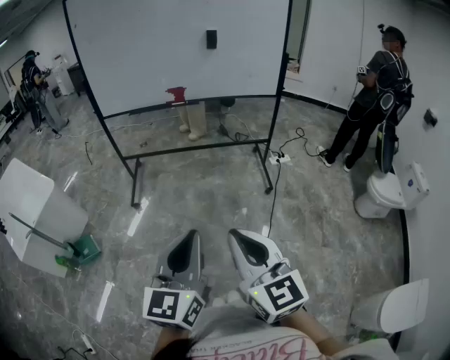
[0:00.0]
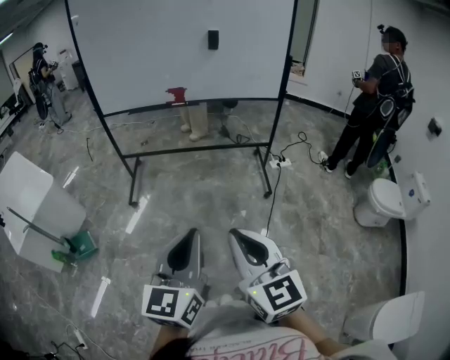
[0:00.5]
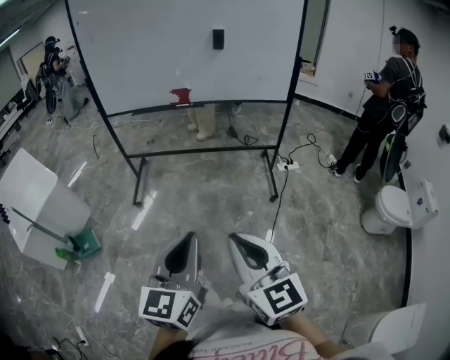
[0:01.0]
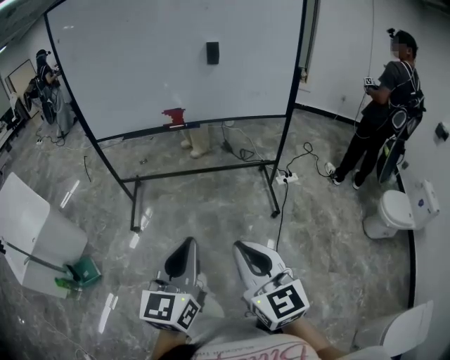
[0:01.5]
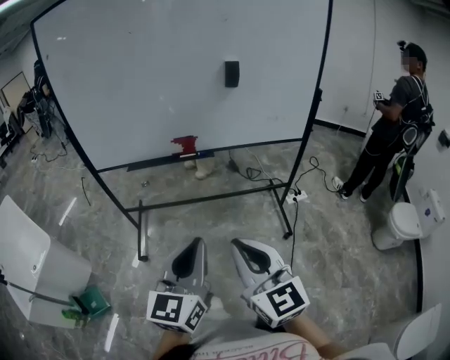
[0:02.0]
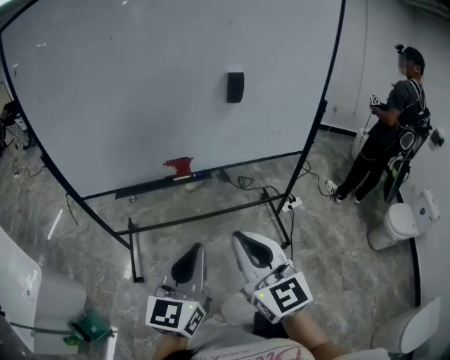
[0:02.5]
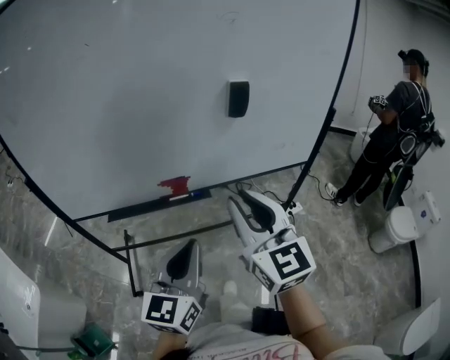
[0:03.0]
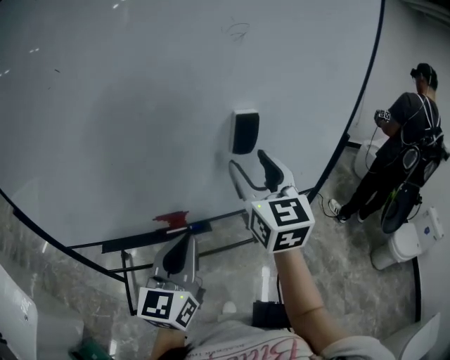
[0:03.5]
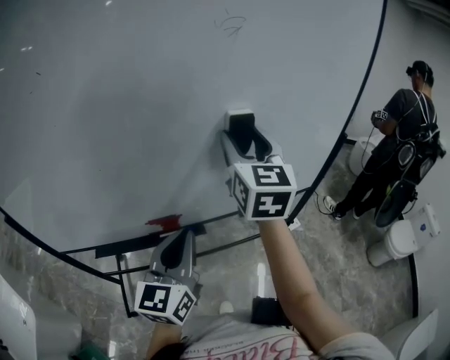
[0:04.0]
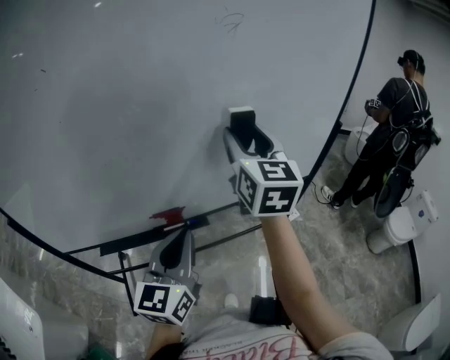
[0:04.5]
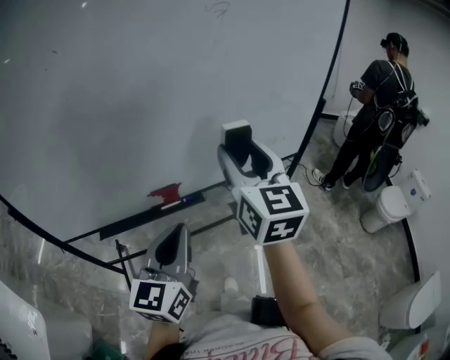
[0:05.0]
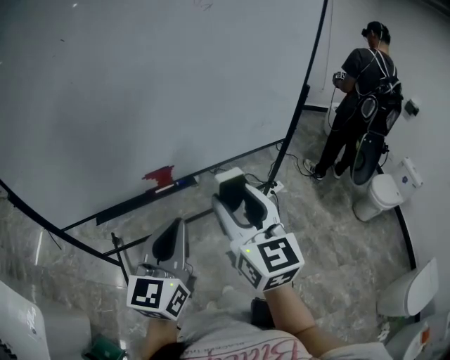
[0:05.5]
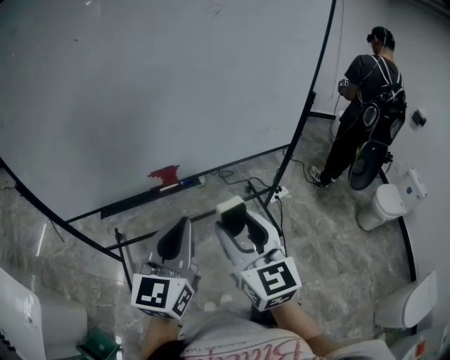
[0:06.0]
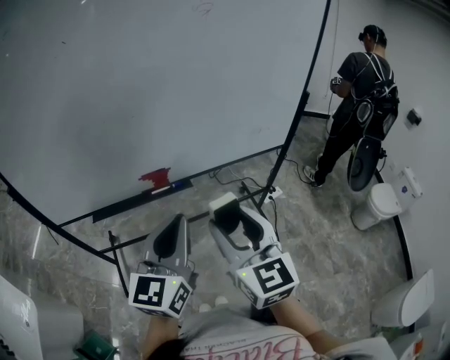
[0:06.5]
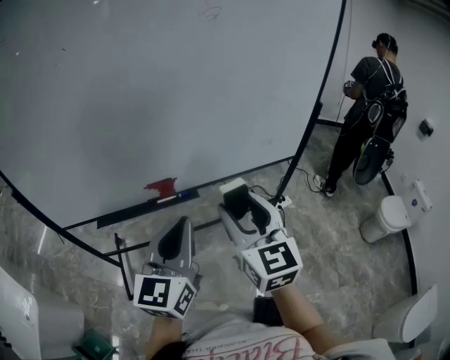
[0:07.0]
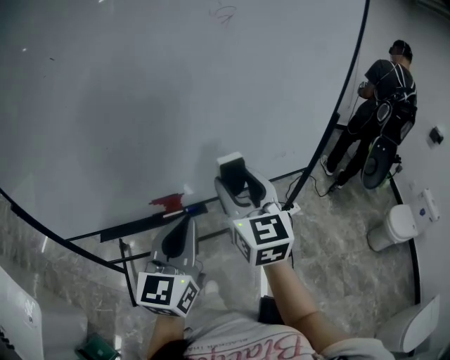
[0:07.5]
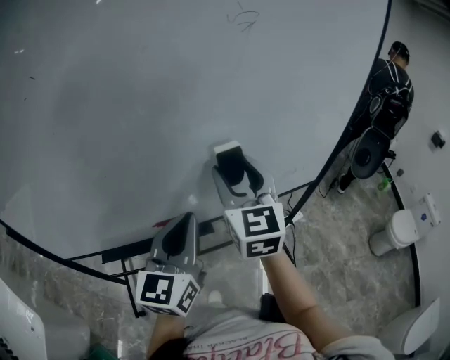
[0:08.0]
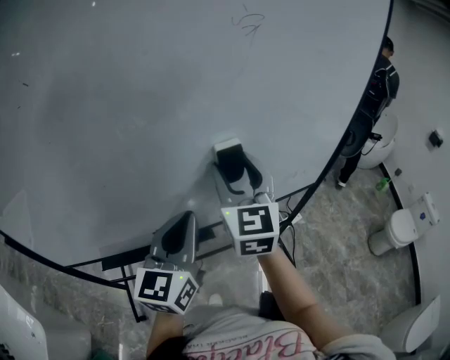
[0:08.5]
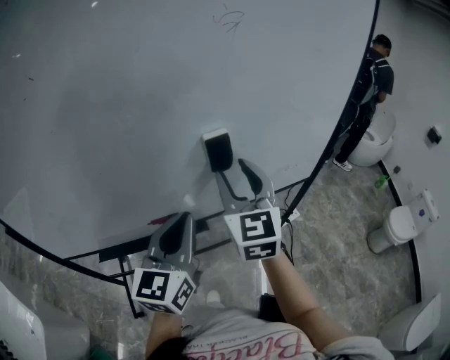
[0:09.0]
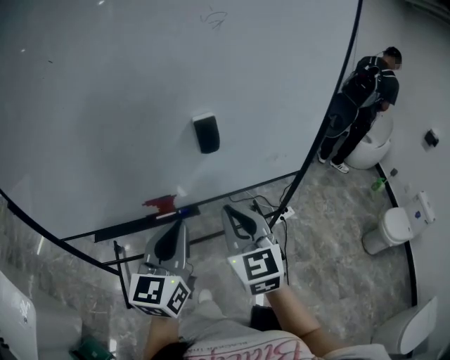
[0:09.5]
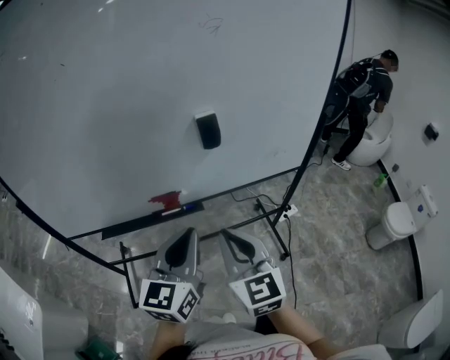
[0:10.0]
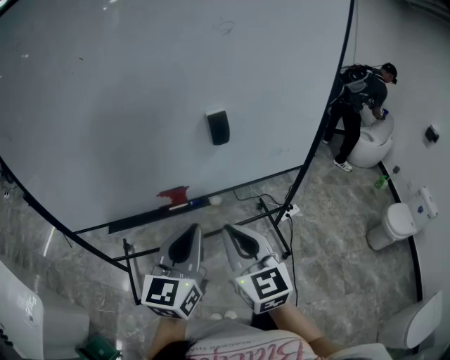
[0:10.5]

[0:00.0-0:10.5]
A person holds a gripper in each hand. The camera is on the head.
0:00.0 to 0:02.0: The grippers both shift forward by about 30 cm.
0:02.0 to 0:04.0: The two grippers go approximately 40 cm forward. The right gripper swivels about 30 degrees, and opens its fingers.
0:04.0 to 0:06.5: The right gripper travels backward by roughly 30 cm. The left gripper heads backward, covering approximately 15 cm.
0:06.5 to 0:08.5: The left gripper is displaced forward by about 20 cm; the right gripper moves forward, some 30 cm.
0:08.5 to 0:10.5: The left gripper heads backward, covering approximately 15 cm; the right gripper is displaced backward by about 25 cm, and closes its fingers.

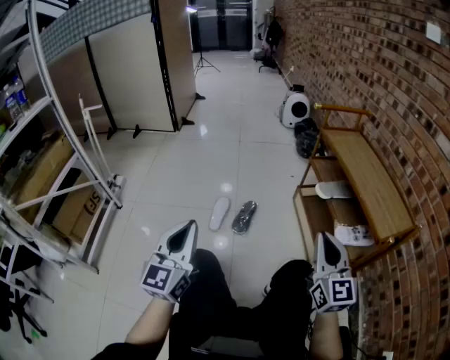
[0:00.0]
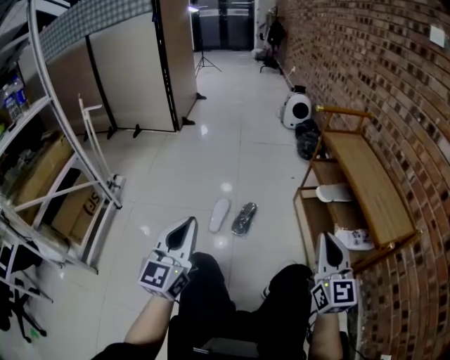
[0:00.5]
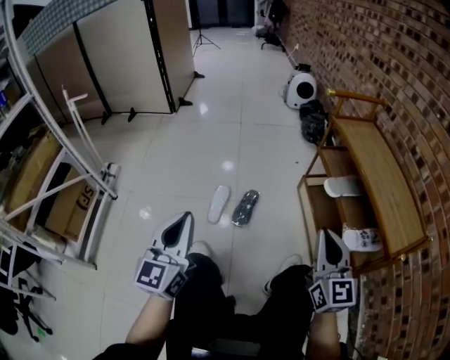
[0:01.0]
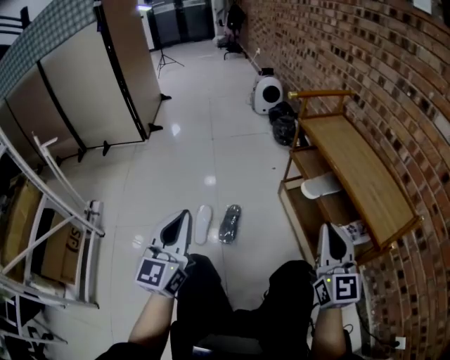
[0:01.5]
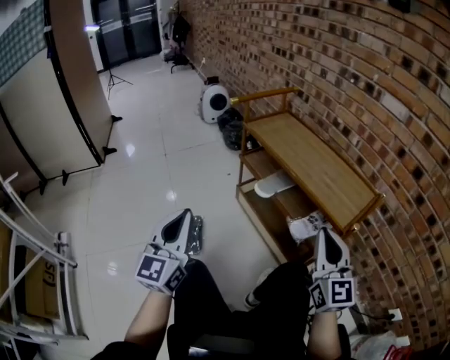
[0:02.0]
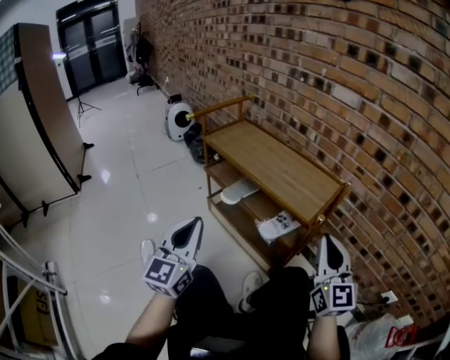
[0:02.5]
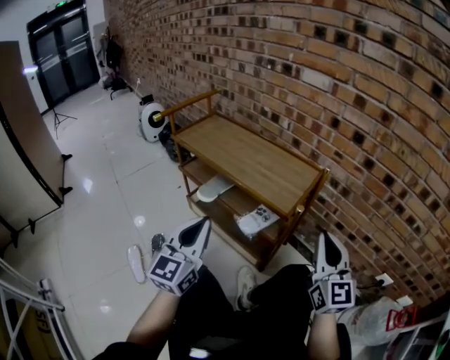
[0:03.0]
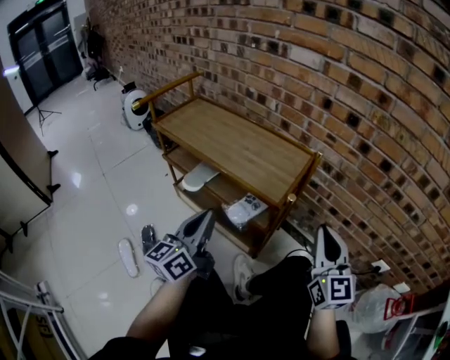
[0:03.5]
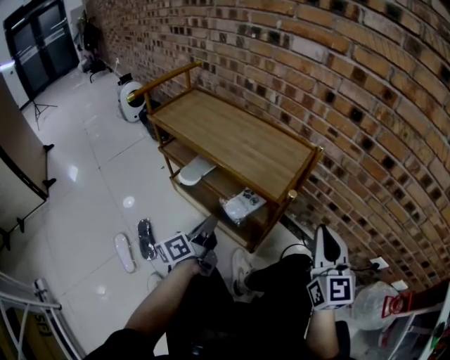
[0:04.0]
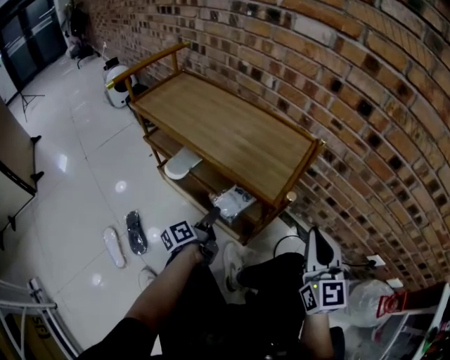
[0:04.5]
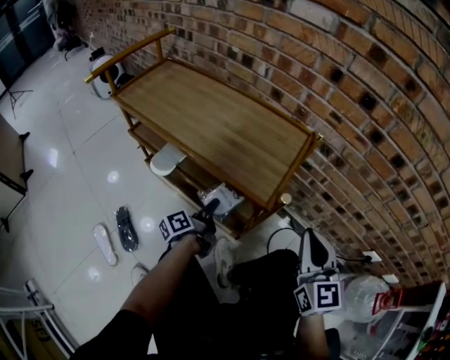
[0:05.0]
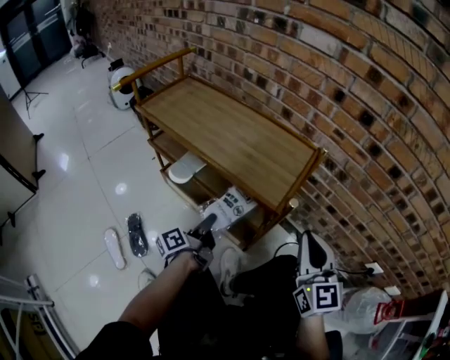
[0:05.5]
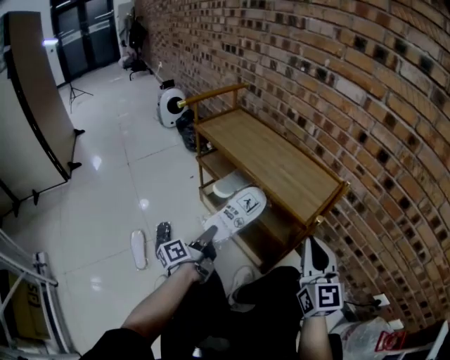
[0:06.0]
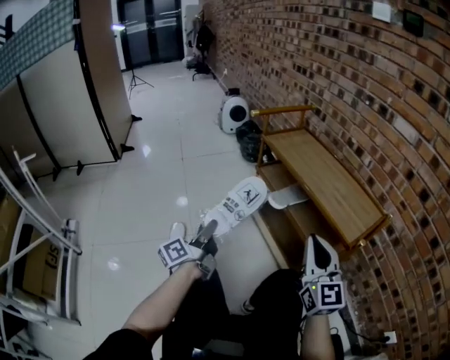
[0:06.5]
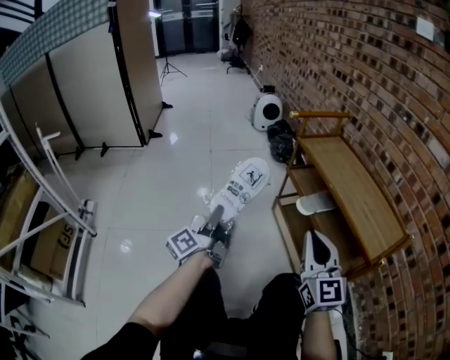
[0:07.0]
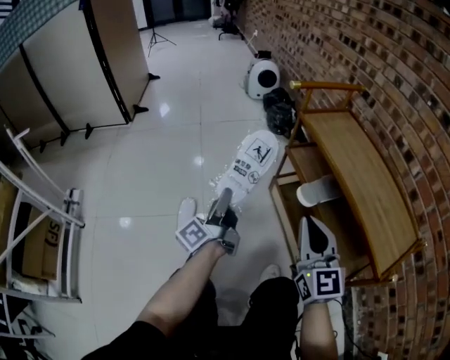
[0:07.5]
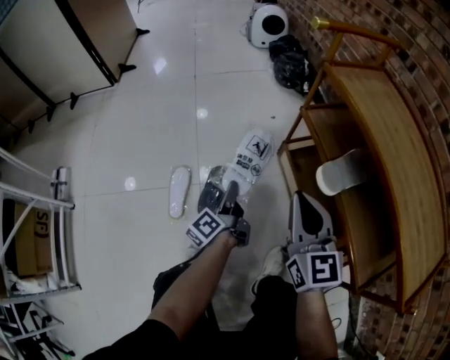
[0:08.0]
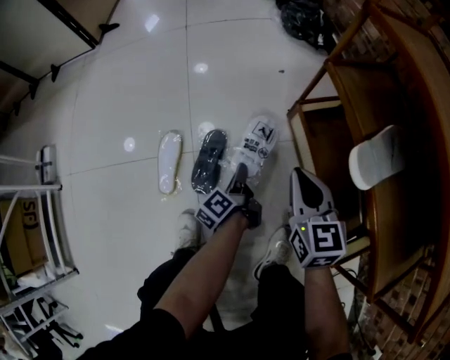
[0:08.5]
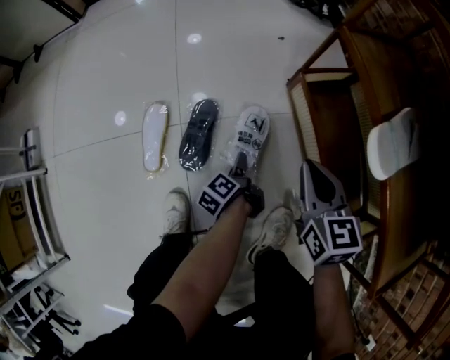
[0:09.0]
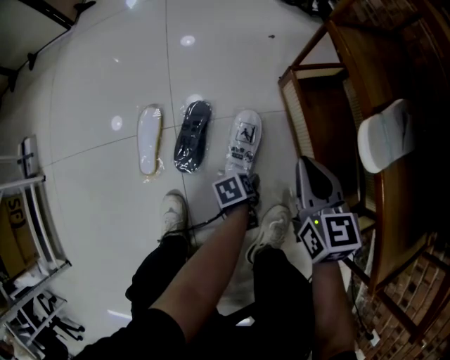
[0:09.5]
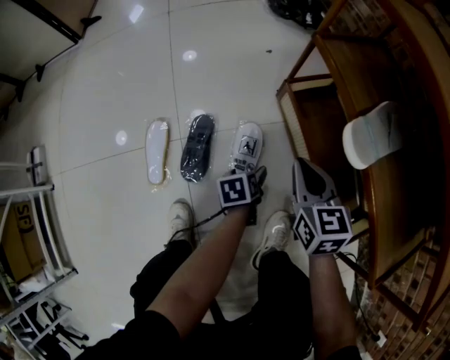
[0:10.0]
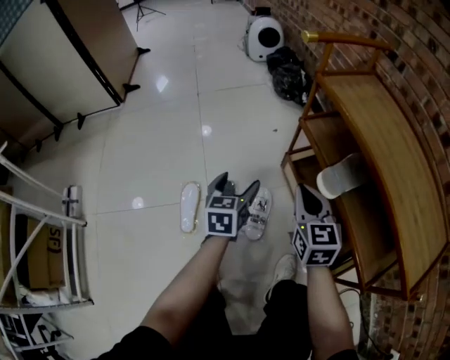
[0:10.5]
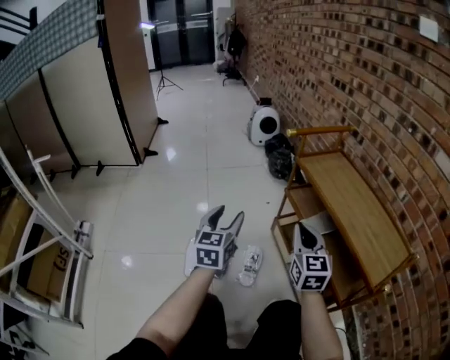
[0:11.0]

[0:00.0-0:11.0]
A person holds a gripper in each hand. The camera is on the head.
0:00.0 to 0:02.0: The right gripper moves some 10 cm, and changes its angle by some 30 degrees. Meanwhile the left gripper ends up about 25 cm from where it was, and swivels some 20 degrees.
0:02.0 to 0:03.5: The right gripper changes place by about 20 cm, and changes its angle by some 20 degrees. Meanwhile the left gripper shifts by approximately 30 cm, and rotates about 50 degrees.
0:03.5 to 0:05.5: The right gripper ends up approximately 5 cm from where it was. Meanwhile the left gripper goes approximately 20 cm downward, and twists approximately 50 degrees counterclockwise, seen from behind.
0:05.5 to 0:07.5: The left gripper shifts by roughly 35 cm, and changes its angle by approximately 50 degrees. Meanwhile the right gripper ends up about 35 cm from where it was, and changes its angle by roughly 40 degrees.
0:07.5 to 0:09.0: The left gripper is displaced downward by about 50 cm, and tilts its fingers some 50 degrees downward. The right gripper is displaced downward and forward by about 35 cm, and angles its fingers downward, by some 30 degrees.
0:09.0 to 0:11.0: The left gripper goes approximately 50 cm upward, and rotates around the line of its fingers by some 80 degrees, clockwise from behind. Meanwhile the right gripper travels upward by approximately 30 cm, and changes its angle by about 30 degrees.

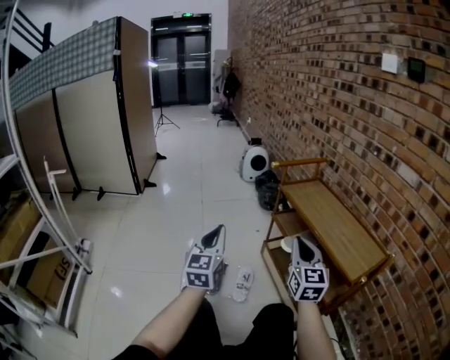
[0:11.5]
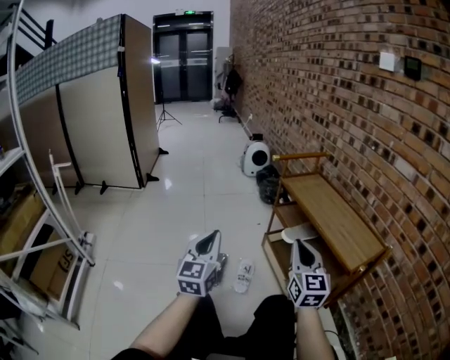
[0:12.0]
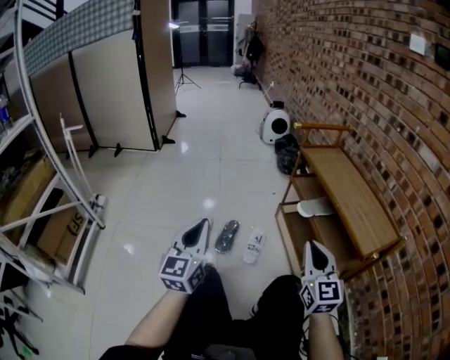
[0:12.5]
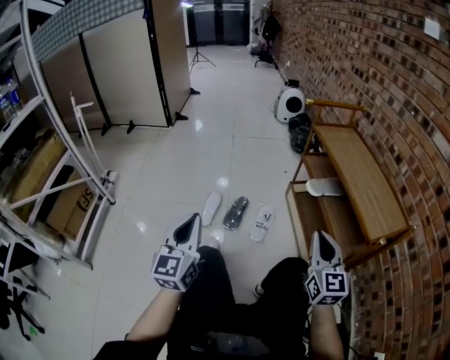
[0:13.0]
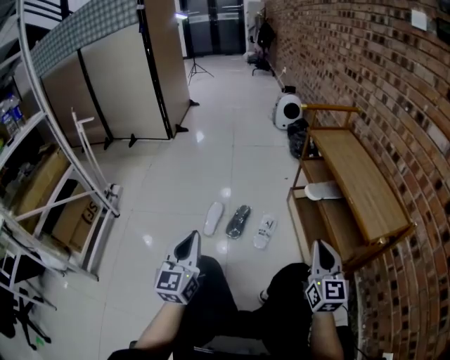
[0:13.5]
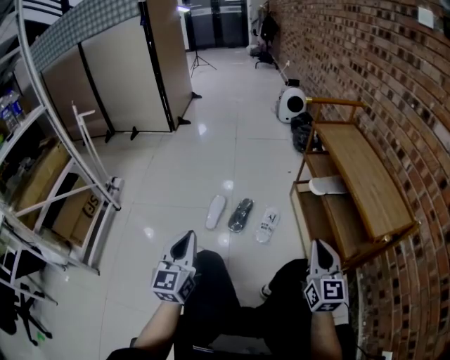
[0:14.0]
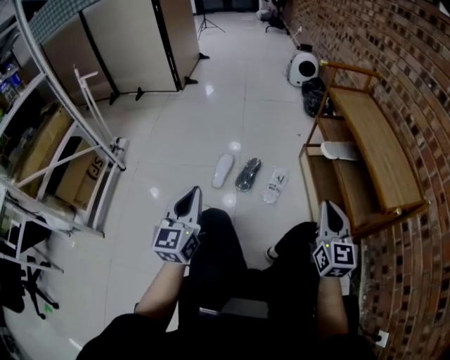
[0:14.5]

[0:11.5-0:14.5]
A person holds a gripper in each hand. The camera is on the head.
0:11.5 to 0:13.0: The right gripper goes approximately 15 cm backward and downward. Meanwhile the left gripper moves backward, about 20 cm.
0:13.0 to 0:14.5: The grippers move only a little.

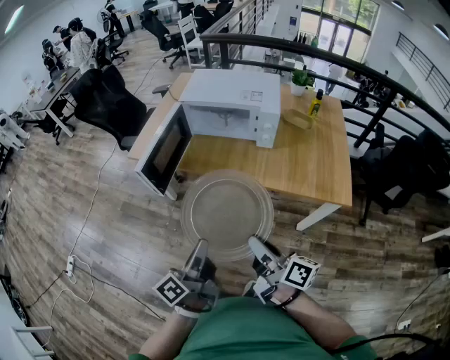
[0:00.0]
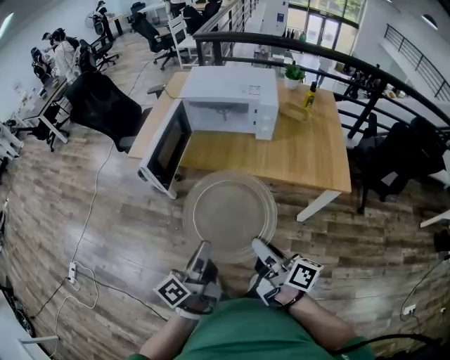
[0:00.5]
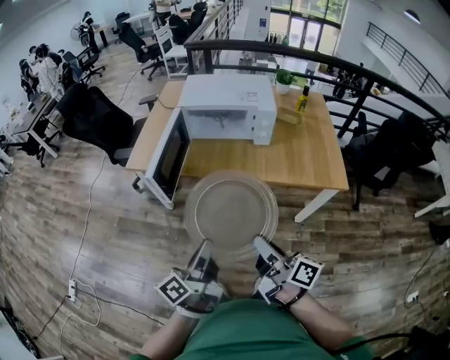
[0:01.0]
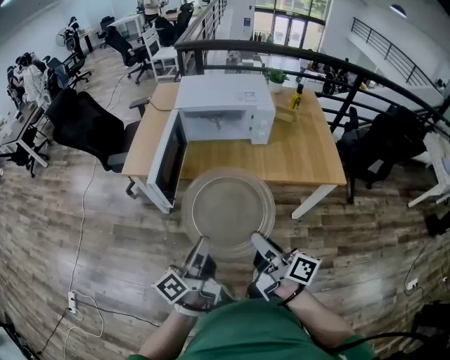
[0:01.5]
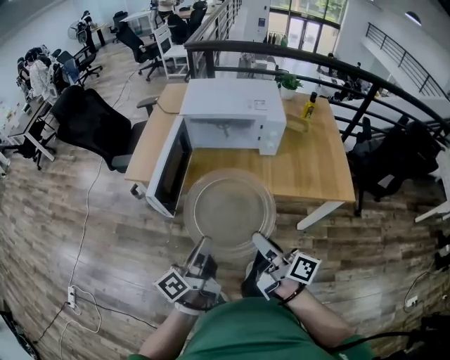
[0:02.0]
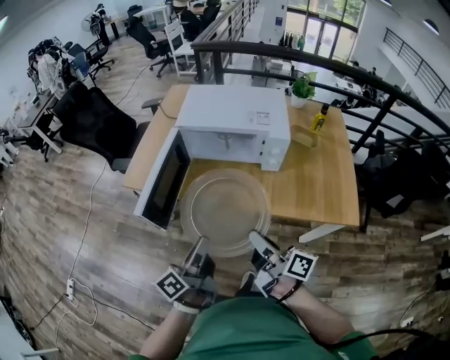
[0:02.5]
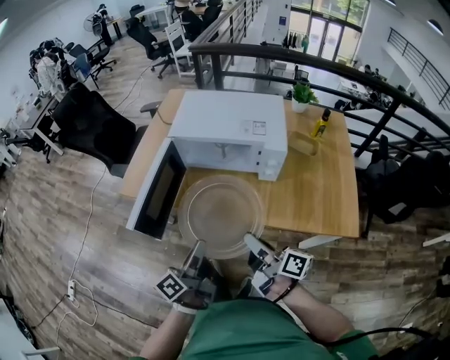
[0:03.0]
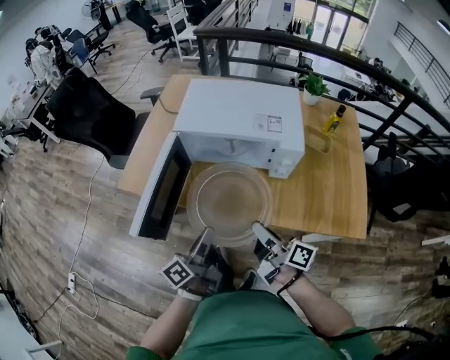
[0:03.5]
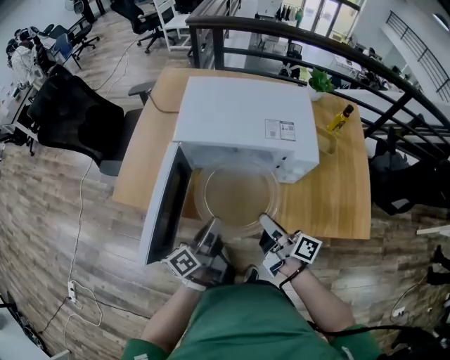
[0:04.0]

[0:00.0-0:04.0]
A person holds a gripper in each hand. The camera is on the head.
0:00.0 to 0:02.0: The grippers both shift to the left and forward by approximately 10 cm.
0:02.0 to 0:04.0: The grippers both shift forward by approximately 30 cm.
